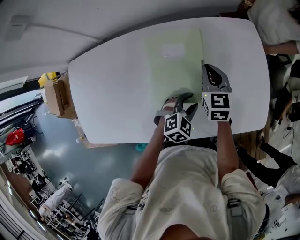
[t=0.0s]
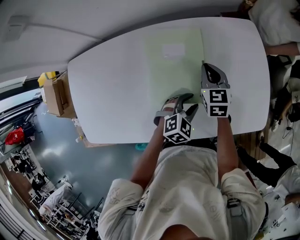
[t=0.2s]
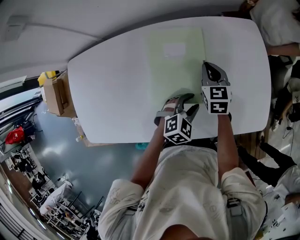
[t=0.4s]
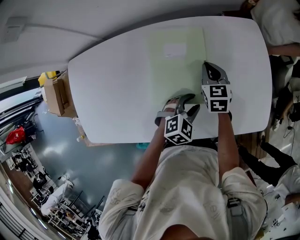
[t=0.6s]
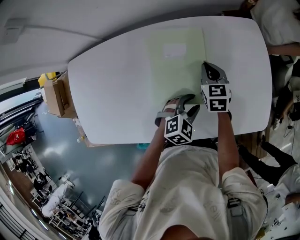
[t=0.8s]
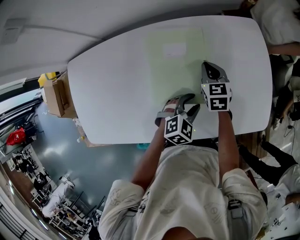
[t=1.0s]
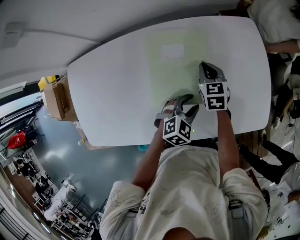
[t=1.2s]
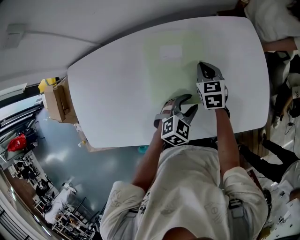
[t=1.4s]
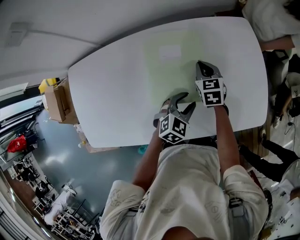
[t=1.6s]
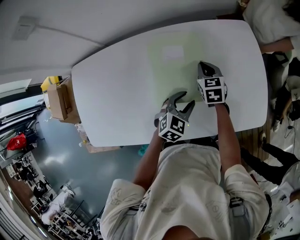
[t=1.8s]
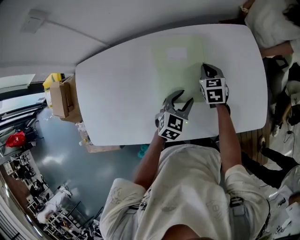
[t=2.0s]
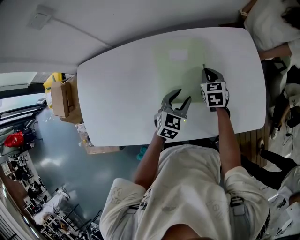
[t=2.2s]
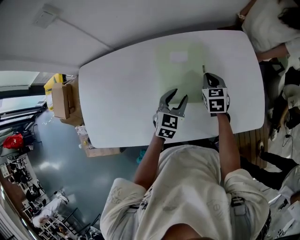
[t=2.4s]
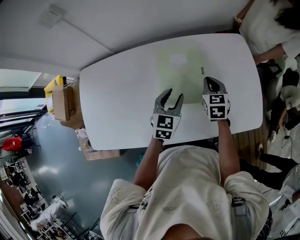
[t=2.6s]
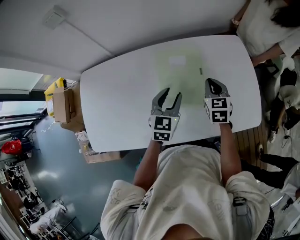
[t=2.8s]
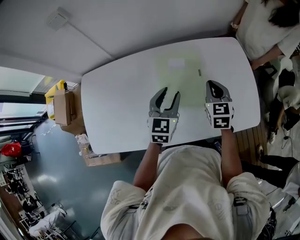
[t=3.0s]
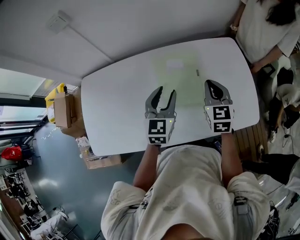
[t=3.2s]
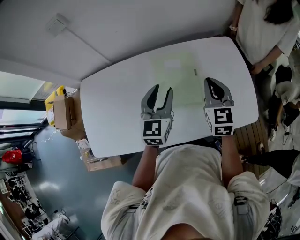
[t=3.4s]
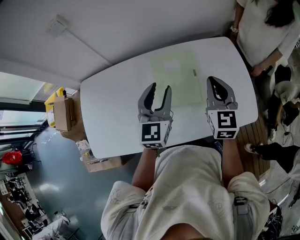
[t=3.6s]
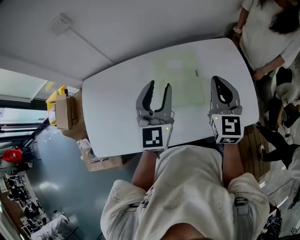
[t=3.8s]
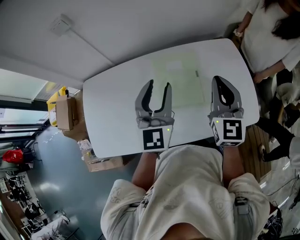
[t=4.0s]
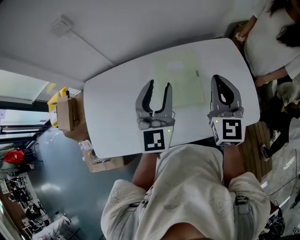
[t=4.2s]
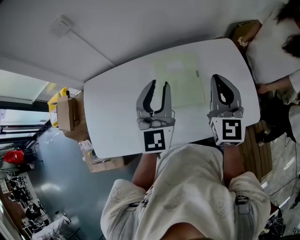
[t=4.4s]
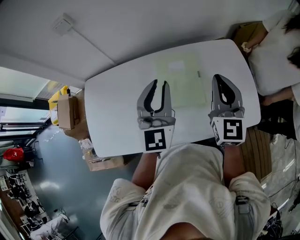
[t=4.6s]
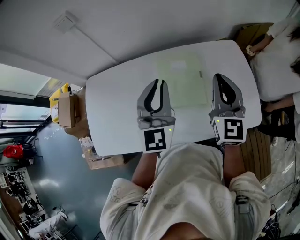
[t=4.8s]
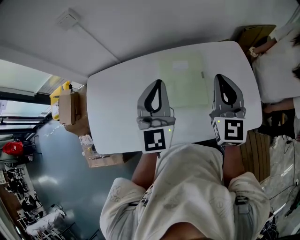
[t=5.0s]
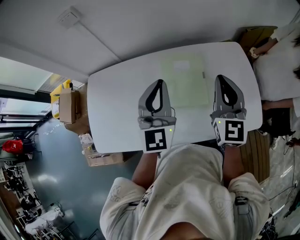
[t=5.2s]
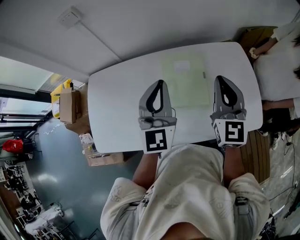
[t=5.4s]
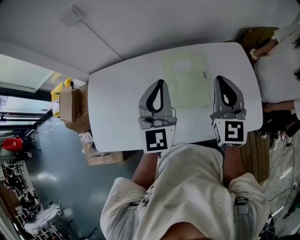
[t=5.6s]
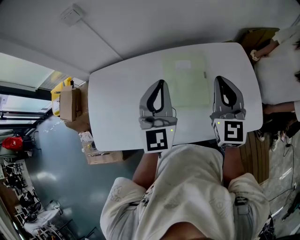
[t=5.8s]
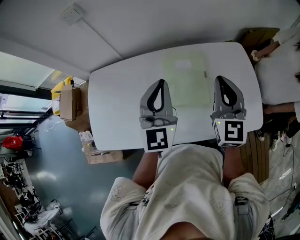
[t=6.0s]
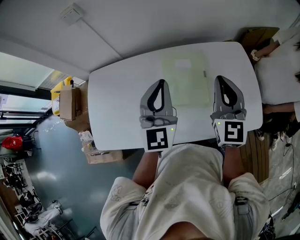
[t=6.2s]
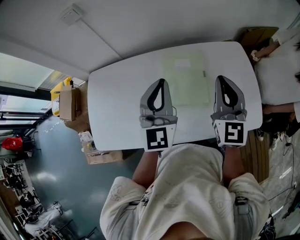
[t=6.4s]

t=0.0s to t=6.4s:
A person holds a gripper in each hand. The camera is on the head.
t=0.0s to t=1.6s: The right gripper travels downward by some 5 cm.
t=1.6s to t=3.2s: The right gripper is displaced upward and backward by approximately 20 cm. Meanwhile the left gripper shifts approximately 20 cm upward and to the left, and turns by some 40 degrees.
t=3.2s to t=4.8s: The grippers both shift upward by approximately 15 cm. The right gripper swivels some 20 degrees. Meanwhile the left gripper swivels roughly 20 degrees, and closes its fingers.
t=4.8s to t=6.4s: The grippers make only small movements.

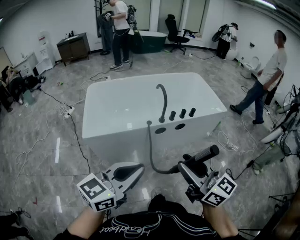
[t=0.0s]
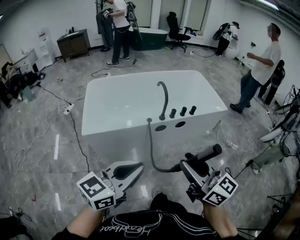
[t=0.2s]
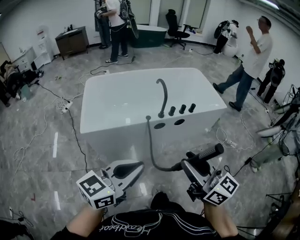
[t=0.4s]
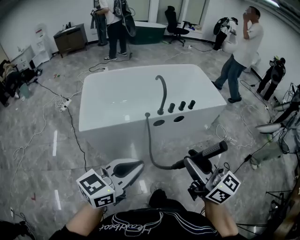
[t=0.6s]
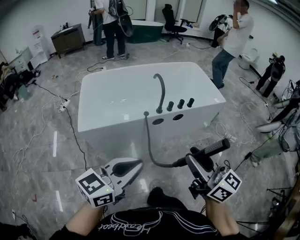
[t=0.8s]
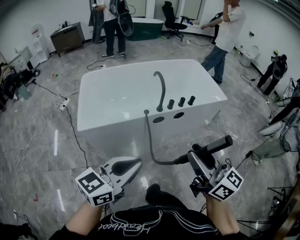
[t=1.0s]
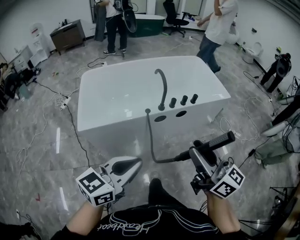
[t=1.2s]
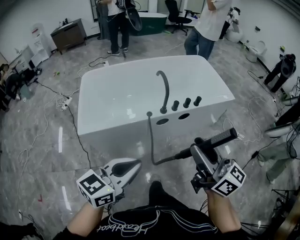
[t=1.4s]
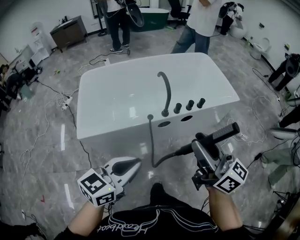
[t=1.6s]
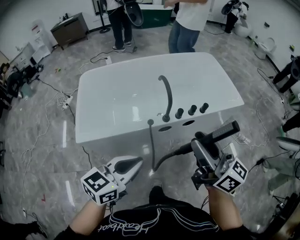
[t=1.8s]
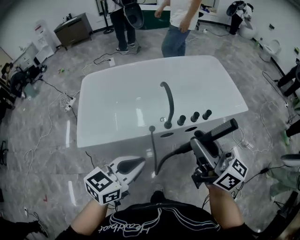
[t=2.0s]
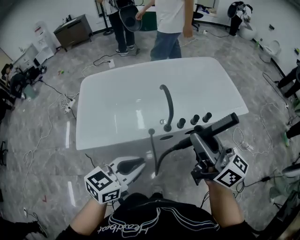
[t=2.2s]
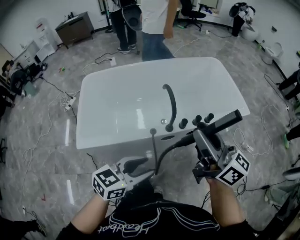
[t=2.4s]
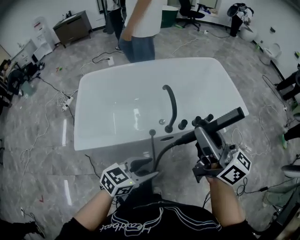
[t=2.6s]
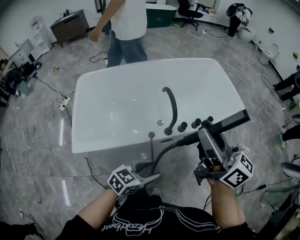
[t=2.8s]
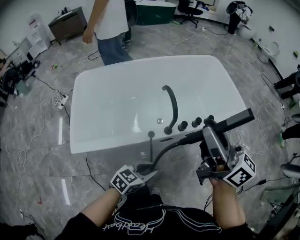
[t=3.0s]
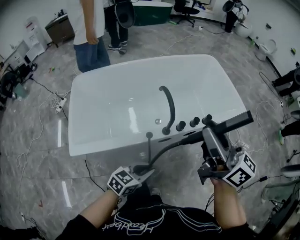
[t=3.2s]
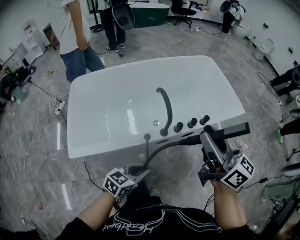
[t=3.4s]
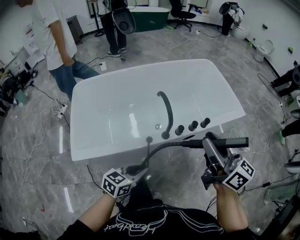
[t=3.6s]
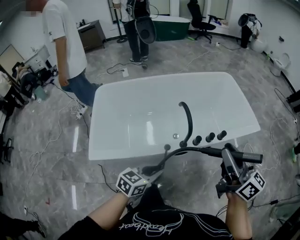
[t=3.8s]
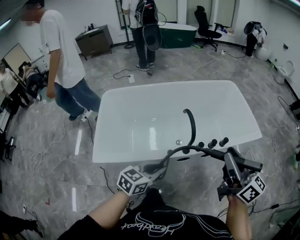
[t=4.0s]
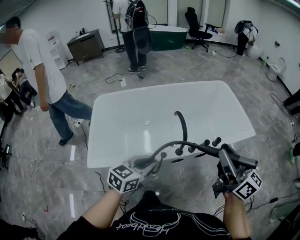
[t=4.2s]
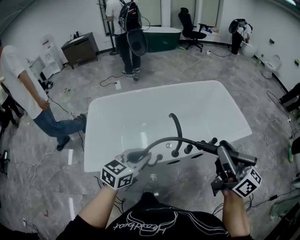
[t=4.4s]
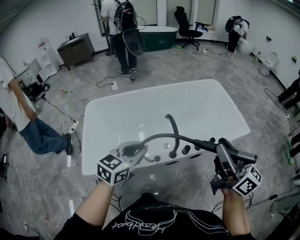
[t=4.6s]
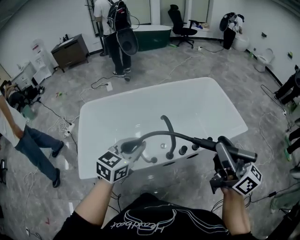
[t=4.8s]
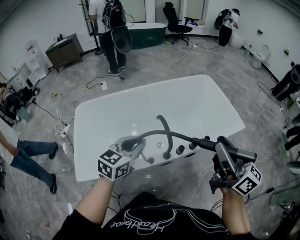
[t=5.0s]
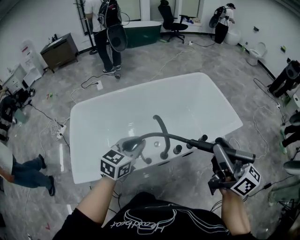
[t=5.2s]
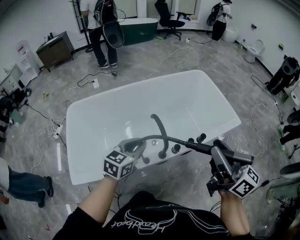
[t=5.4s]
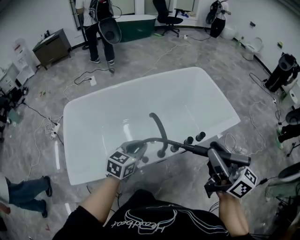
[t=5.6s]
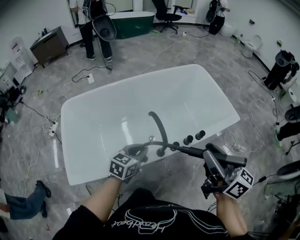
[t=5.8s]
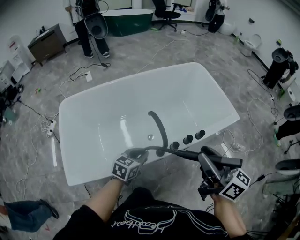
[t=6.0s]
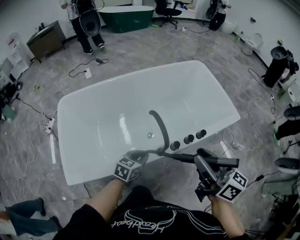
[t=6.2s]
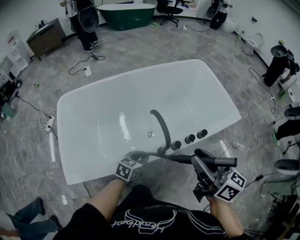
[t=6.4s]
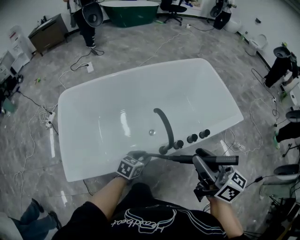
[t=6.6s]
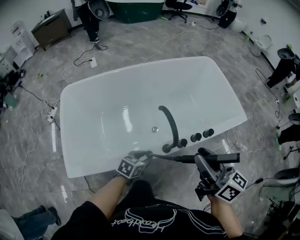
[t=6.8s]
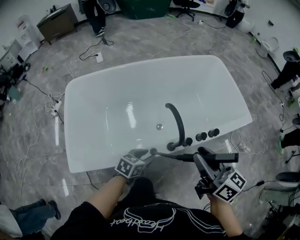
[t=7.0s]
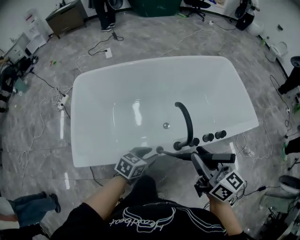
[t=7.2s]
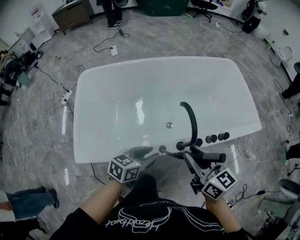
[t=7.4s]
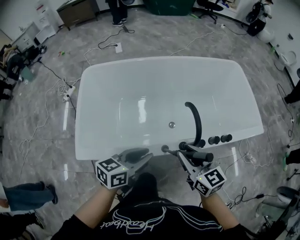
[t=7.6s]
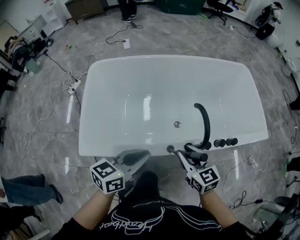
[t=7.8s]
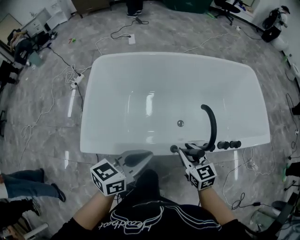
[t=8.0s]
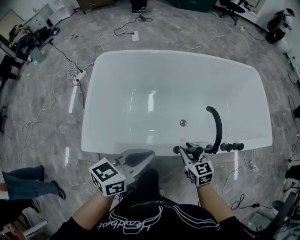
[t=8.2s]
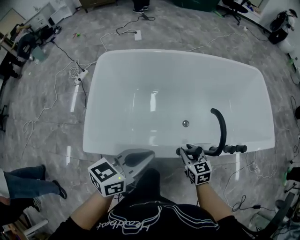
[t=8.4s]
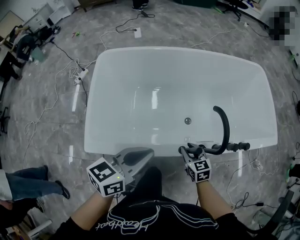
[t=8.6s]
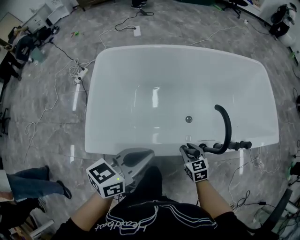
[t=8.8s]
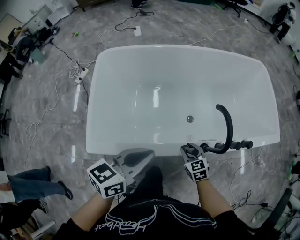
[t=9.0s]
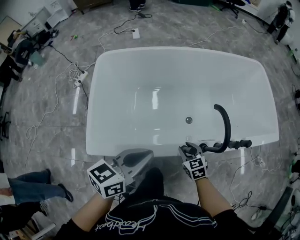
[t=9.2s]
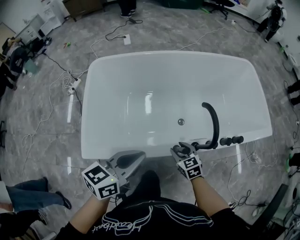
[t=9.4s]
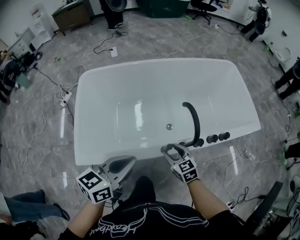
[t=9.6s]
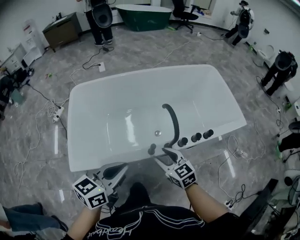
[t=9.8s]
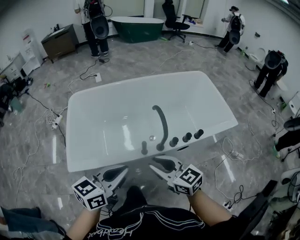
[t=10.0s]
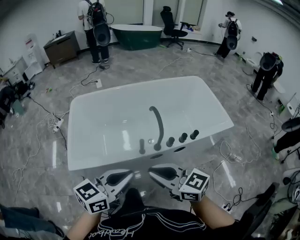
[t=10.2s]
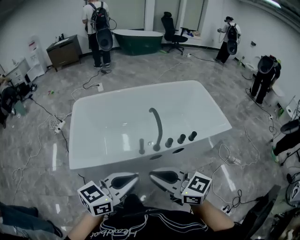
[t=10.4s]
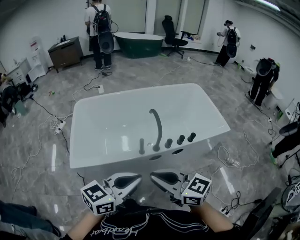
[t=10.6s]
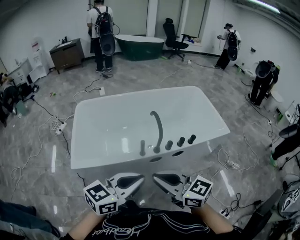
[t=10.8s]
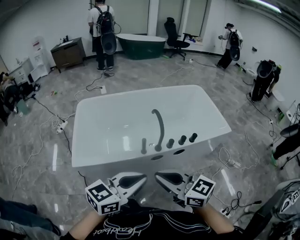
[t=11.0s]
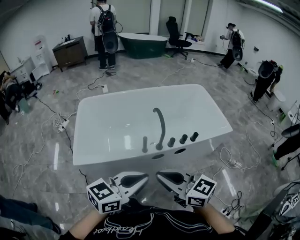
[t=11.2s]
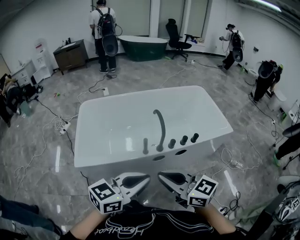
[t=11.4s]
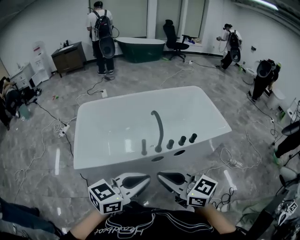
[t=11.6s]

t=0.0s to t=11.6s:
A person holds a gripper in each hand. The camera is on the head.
t=0.0s to t=1.4s: The left gripper is displaced forward and downward by some 10 cm; the right gripper moves forward, about 10 cm.
t=1.4s to t=2.8s: The right gripper is displaced forward by approximately 25 cm. The left gripper travels forward and downward by approximately 25 cm, rotates some 20 degrees, and opens.
t=2.8s to t=4.4s: The left gripper travels upward, forward and to the left by about 20 cm, rotates some 20 degrees, and closes, while the right gripper heads to the right, covering some 5 cm.
t=4.4s to t=5.8s: The right gripper travels downward by about 5 cm. Meanwhile the left gripper moves downward and forward, about 20 cm.
t=5.8s to t=7.2s: The right gripper moves to the left and downward, approximately 15 cm. The left gripper travels downward by roughly 10 cm, and opens up.
t=7.2s to t=8.8s: The right gripper goes some 30 cm downward, and tips its fingers downward by roughly 40 degrees, while the left gripper is displaced to the left and upward by approximately 20 cm, turns by about 30 degrees, and closes its fingers.
t=8.8s to t=10.2s: The right gripper goes approximately 40 cm upward and backward, tips its fingers upward by roughly 30 degrees, and closes up. The left gripper is displaced backward, to the right and upward by roughly 25 cm.
t=10.2s to t=11.6s: The right gripper is displaced backward by approximately 5 cm. Meanwhile the left gripper moves backward and to the right, about 10 cm.

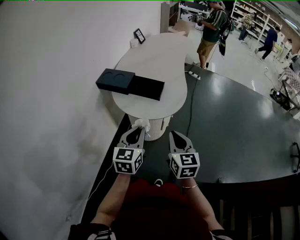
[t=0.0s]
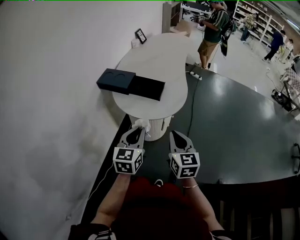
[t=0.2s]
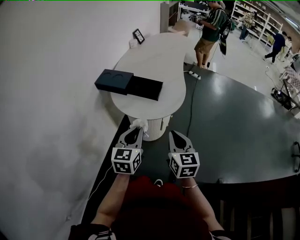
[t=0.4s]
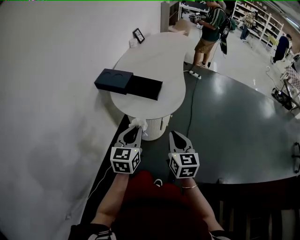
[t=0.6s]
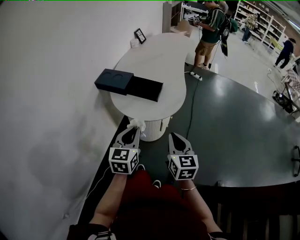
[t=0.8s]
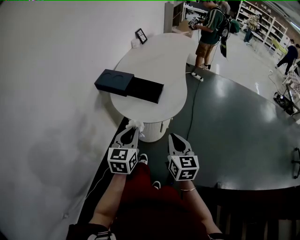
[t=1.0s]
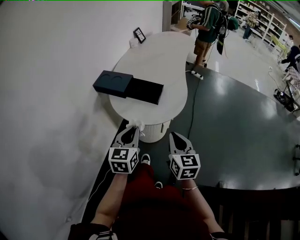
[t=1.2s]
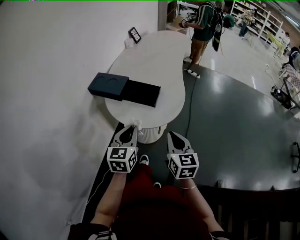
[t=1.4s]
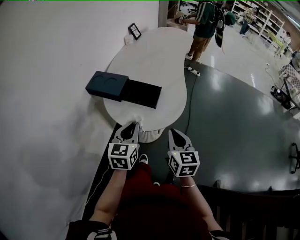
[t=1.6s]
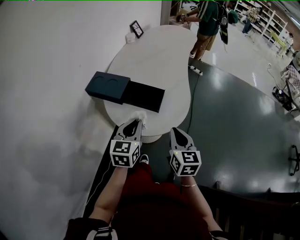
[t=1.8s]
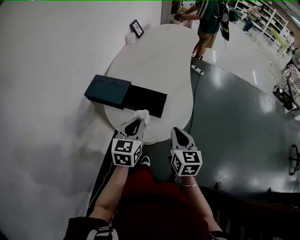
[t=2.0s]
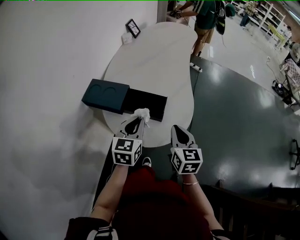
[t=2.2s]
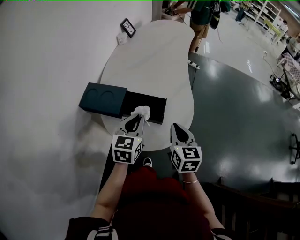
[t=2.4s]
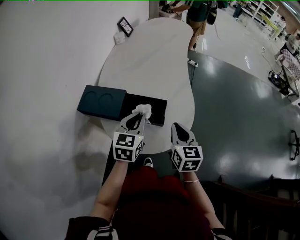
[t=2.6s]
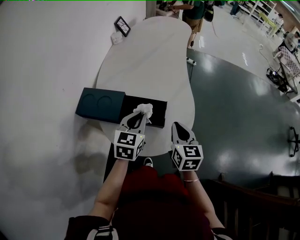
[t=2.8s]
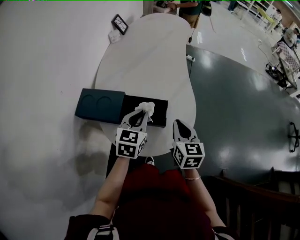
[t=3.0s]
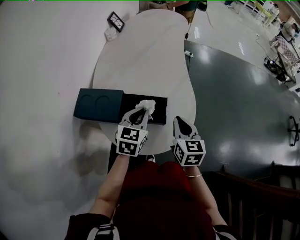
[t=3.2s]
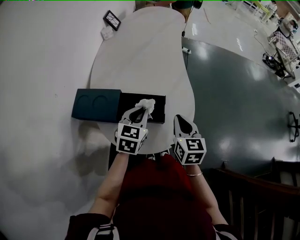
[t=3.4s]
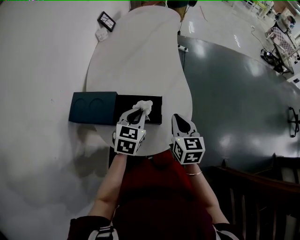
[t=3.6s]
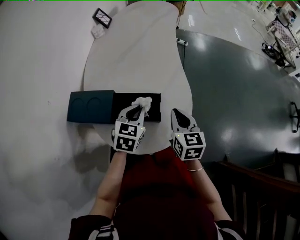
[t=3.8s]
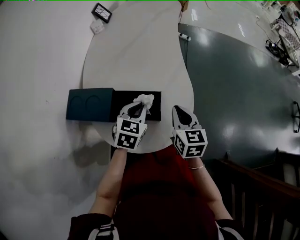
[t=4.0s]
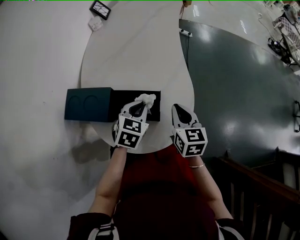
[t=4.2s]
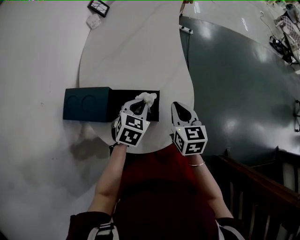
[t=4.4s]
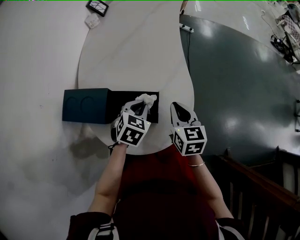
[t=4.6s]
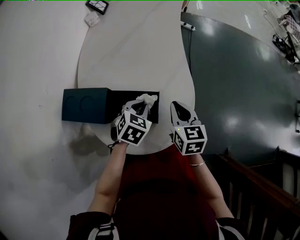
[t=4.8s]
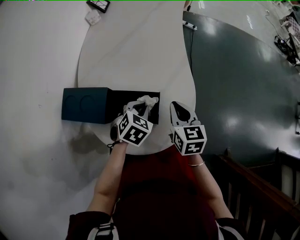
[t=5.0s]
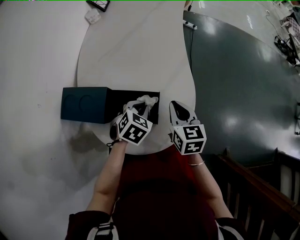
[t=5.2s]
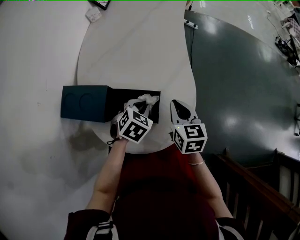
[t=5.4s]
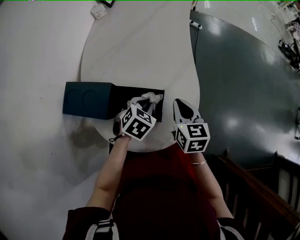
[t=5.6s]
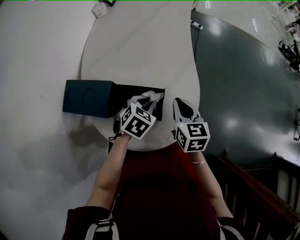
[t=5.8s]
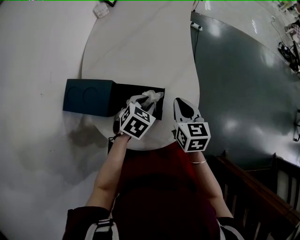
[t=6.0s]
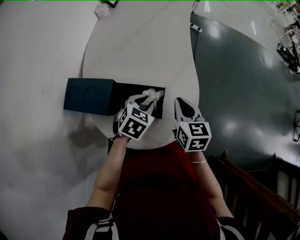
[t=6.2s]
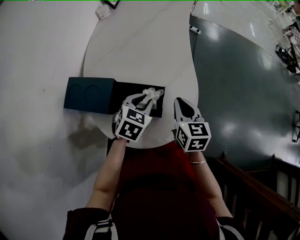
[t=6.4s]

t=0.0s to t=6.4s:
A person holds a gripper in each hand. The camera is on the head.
t=0.0s to t=1.6s: The grippers both shift forward by approximately 10 cm.
t=1.6s to t=3.2s: Both grippers travel together forward, some 20 cm. The left gripper changes its angle by roughly 20 degrees.
t=3.2s to t=4.8s: The right gripper travels forward by roughly 5 cm, while the left gripper goes roughly 10 cm downward, and rotates roughly 30 degrees.
t=4.8s to t=6.4s: The grippers make only small movements.
